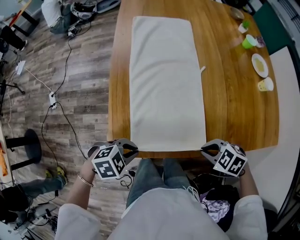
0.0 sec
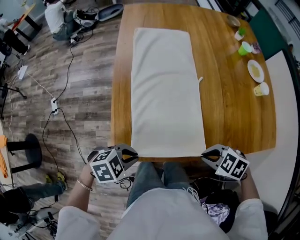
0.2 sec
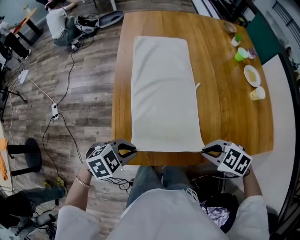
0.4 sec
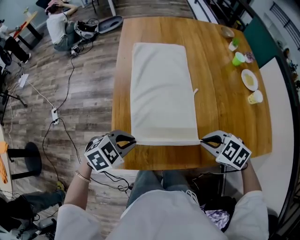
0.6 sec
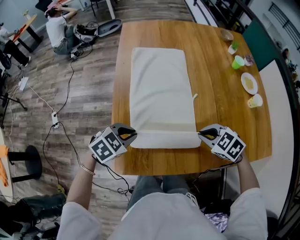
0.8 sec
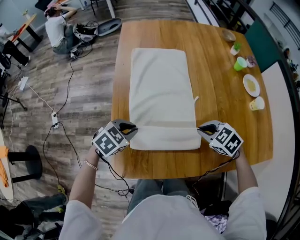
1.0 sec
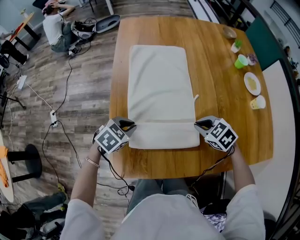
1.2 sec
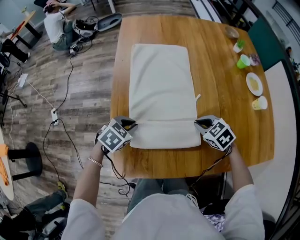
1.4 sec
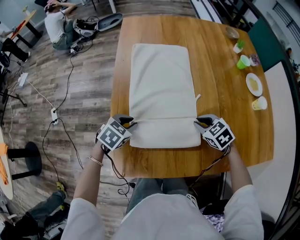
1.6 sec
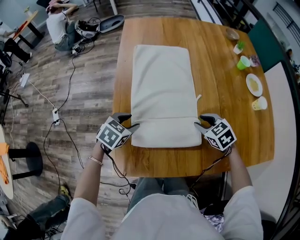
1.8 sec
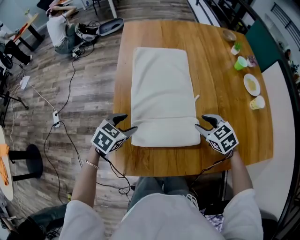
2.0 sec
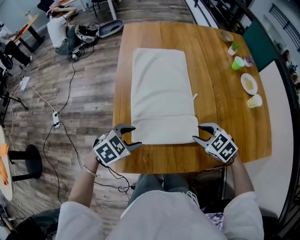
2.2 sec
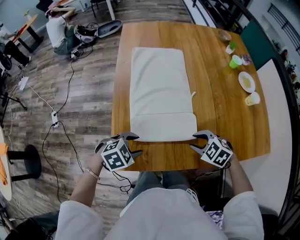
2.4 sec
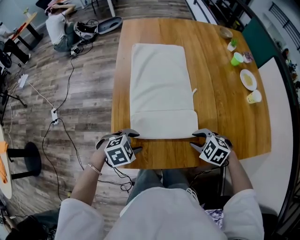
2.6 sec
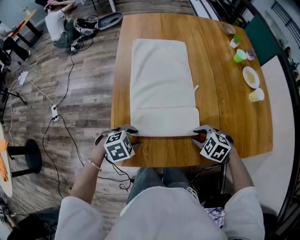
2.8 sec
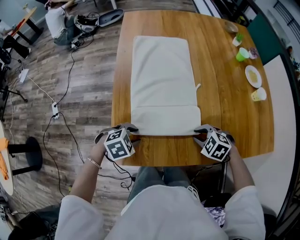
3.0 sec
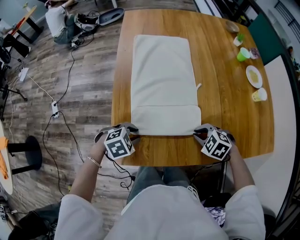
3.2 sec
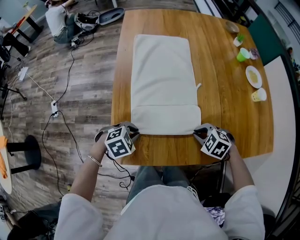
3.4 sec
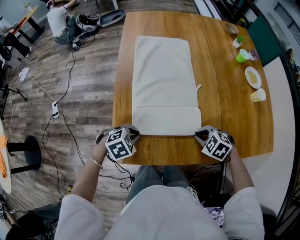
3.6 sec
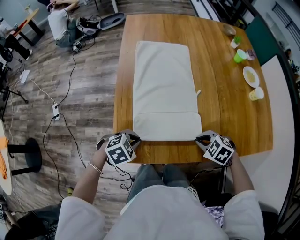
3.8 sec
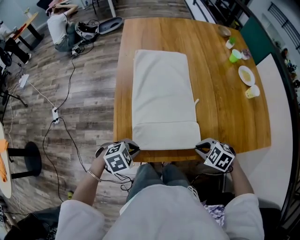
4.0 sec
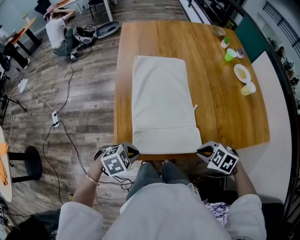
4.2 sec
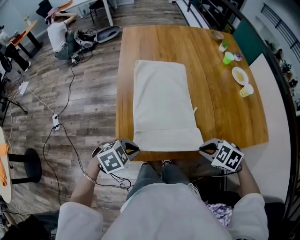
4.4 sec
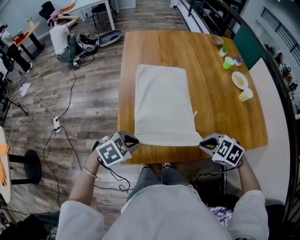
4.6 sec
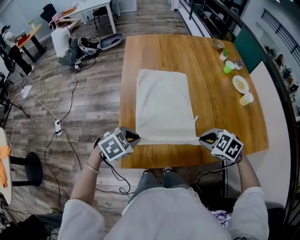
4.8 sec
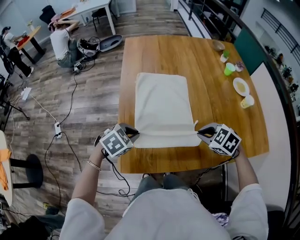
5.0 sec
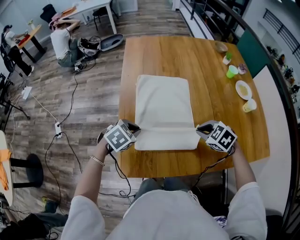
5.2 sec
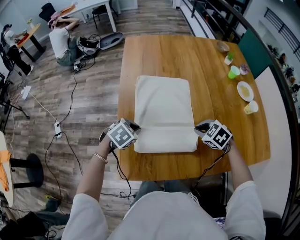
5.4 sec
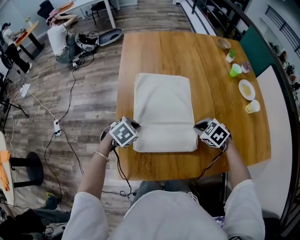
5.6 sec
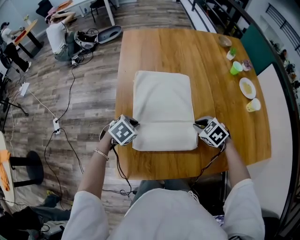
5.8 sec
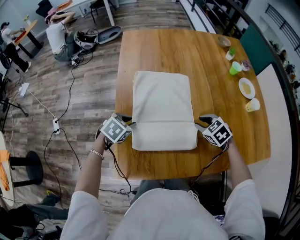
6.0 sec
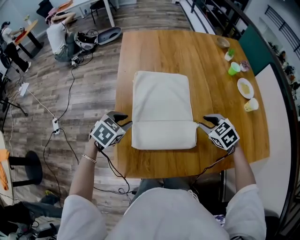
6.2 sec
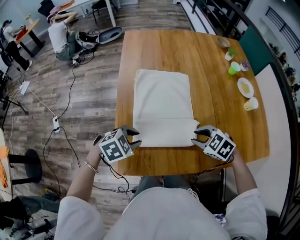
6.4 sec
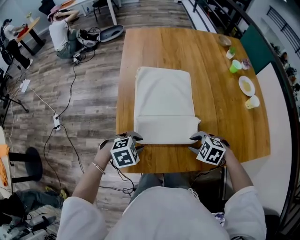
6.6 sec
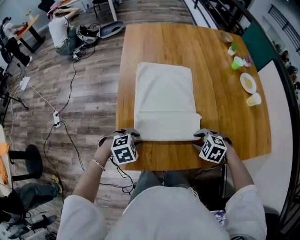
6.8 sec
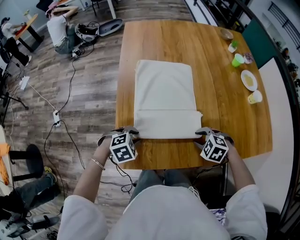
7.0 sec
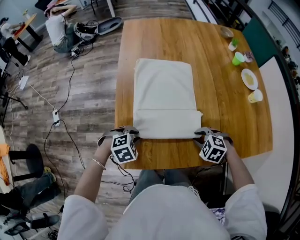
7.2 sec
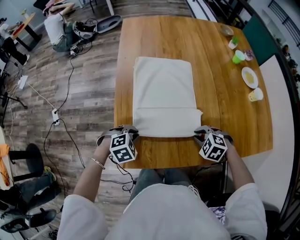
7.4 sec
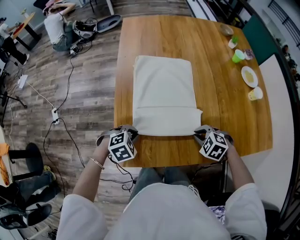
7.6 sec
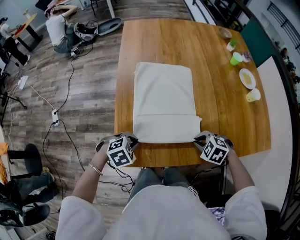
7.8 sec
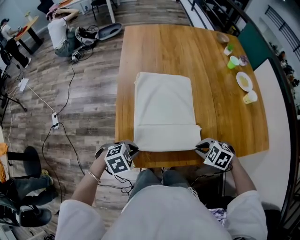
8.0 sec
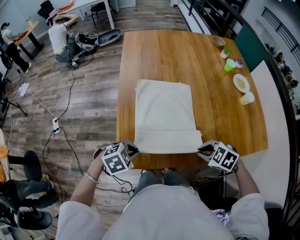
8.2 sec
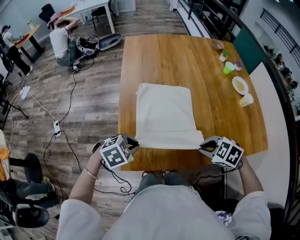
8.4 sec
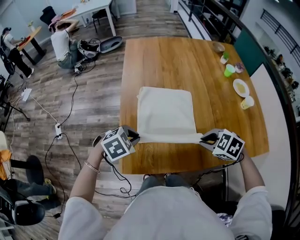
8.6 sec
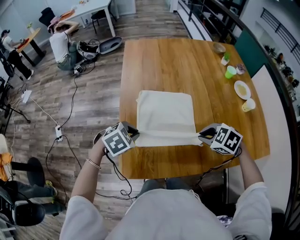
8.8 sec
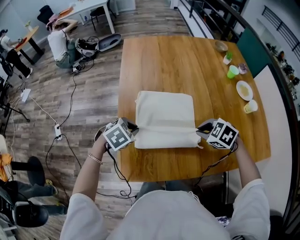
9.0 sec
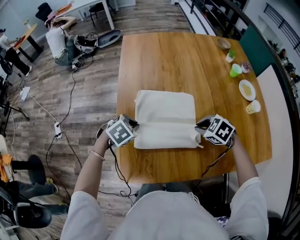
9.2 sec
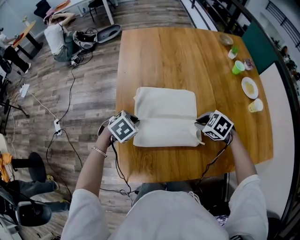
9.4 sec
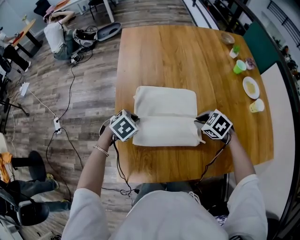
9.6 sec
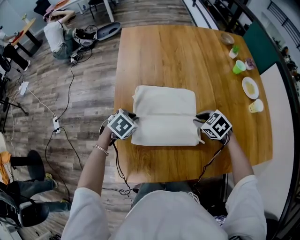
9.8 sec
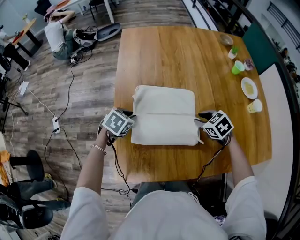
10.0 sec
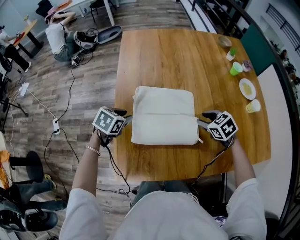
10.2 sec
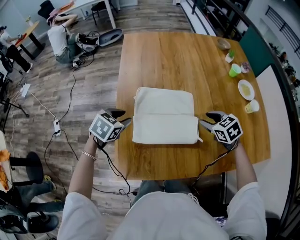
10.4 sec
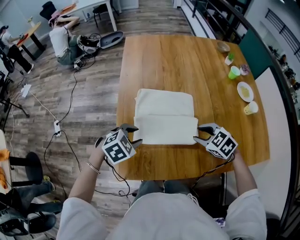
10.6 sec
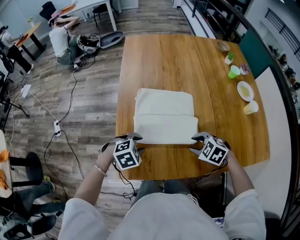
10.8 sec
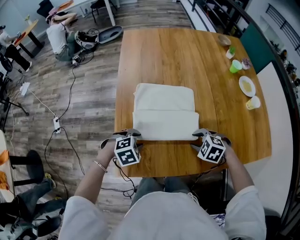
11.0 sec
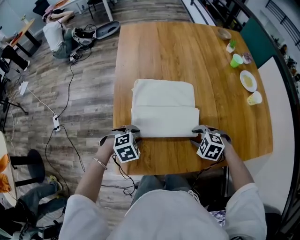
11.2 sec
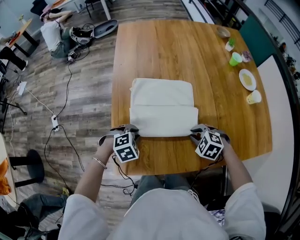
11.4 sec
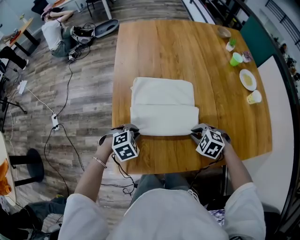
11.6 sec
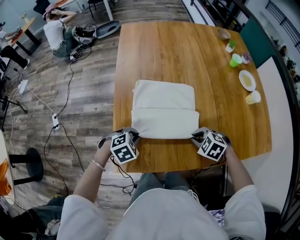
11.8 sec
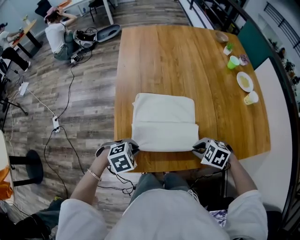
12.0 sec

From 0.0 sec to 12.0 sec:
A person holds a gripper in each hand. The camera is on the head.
From 0.0 sec to 1.6 sec: The left gripper changes place by about 20 cm, and changes its angle by roughly 30 degrees; the right gripper travels upward and back again, some 10 cm each way, and swivels some 30 degrees.
From 1.6 sec to 3.0 sec: The left gripper shifts by about 10 cm, and changes its angle by about 30 degrees. The right gripper changes place by some 10 cm, and rotates roughly 30 degrees.
From 3.0 sec to 4.4 sec: The left gripper shifts by roughly 10 cm. Meanwhile the right gripper shifts by about 15 cm.
From 4.4 sec to 6.0 sec: The right gripper changes place by approximately 25 cm, and swivels approximately 20 degrees, while the left gripper ends up about 25 cm from where it was, and swivels some 20 degrees.
From 6.0 sec to 7.6 sec: The right gripper ends up about 15 cm from where it was, and rotates roughly 20 degrees; the left gripper shifts by approximately 15 cm, and changes its angle by approximately 30 degrees.
From 7.6 sec to 9.0 sec: The right gripper goes about 10 cm upward, while the left gripper ends up approximately 10 cm from where it was.
From 9.0 sec to 10.4 sec: The left gripper changes place by roughly 5 cm, and swivels approximately 20 degrees, while the right gripper is displaced forward by roughly 5 cm, and turns by some 30 degrees.
From 10.4 sec to 12.0 sec: The left gripper shifts by some 20 cm, and changes its angle by some 30 degrees. Meanwhile the right gripper shifts by approximately 20 cm, and swivels about 30 degrees.

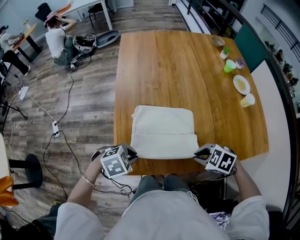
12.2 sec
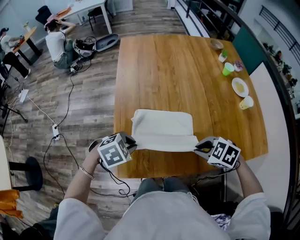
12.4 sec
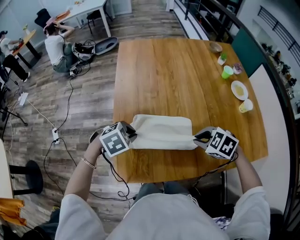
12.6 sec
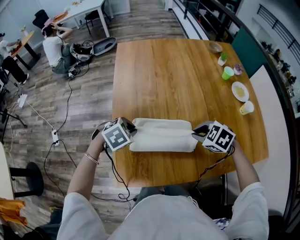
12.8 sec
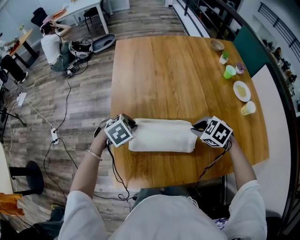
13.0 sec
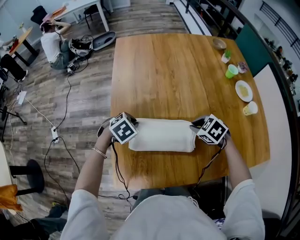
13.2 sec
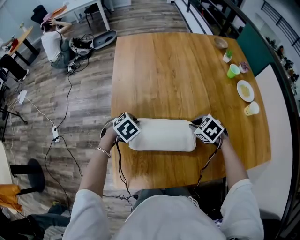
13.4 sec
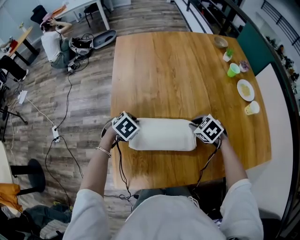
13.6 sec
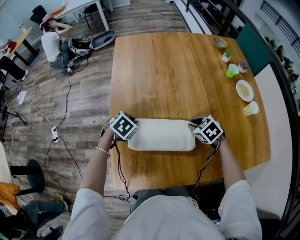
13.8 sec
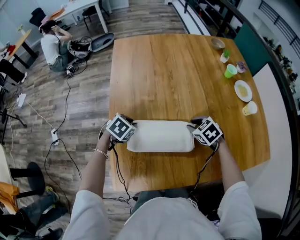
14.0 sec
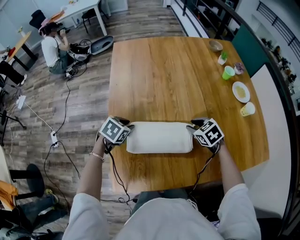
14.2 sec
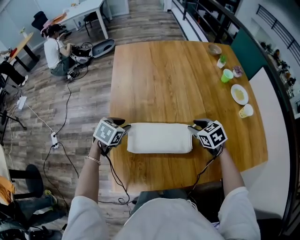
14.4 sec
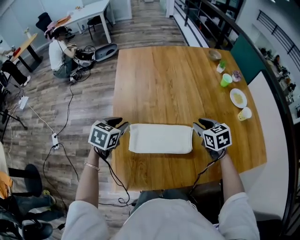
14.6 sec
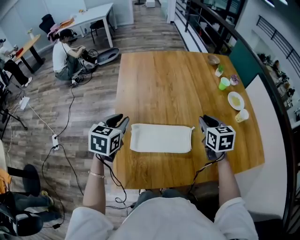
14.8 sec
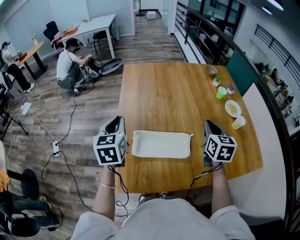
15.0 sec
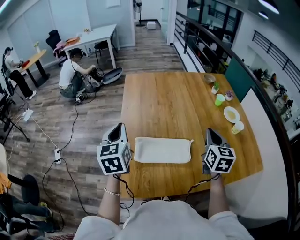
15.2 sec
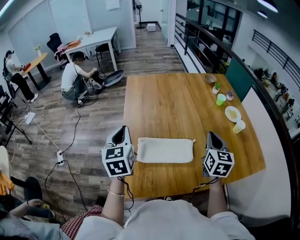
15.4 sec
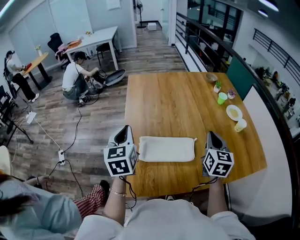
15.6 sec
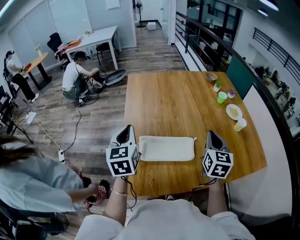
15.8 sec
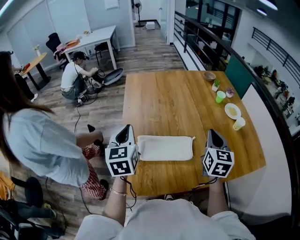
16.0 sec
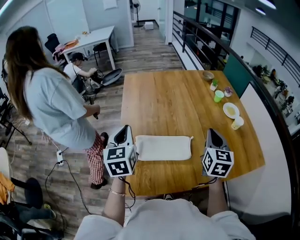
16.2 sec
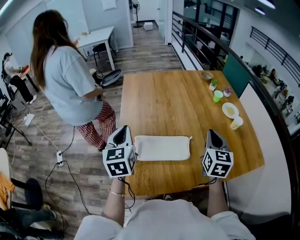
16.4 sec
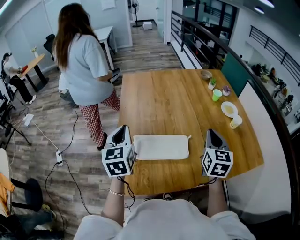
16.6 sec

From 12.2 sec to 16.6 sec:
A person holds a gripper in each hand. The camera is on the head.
From 12.2 sec to 13.6 sec: The left gripper ends up approximately 25 cm from where it was, and rotates about 20 degrees; the right gripper moves roughly 25 cm, and turns by approximately 20 degrees.
From 13.6 sec to 15.2 sec: The grippers both shift upward by approximately 25 cm. The right gripper tips its fingers upward by approximately 50 degrees. The left gripper points its fingers about 50 degrees further upward.
From 15.2 sec to 16.6 sec: There are only small adjustments of the grippers.

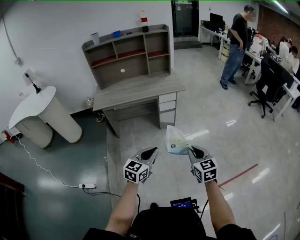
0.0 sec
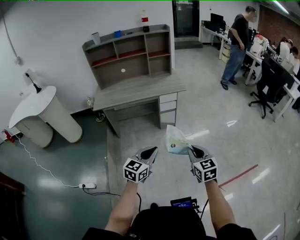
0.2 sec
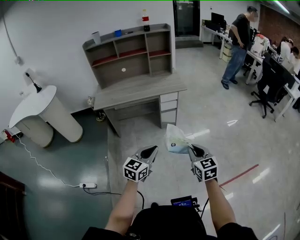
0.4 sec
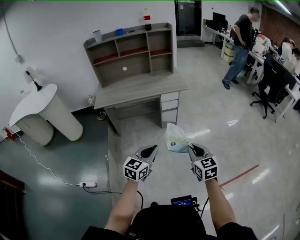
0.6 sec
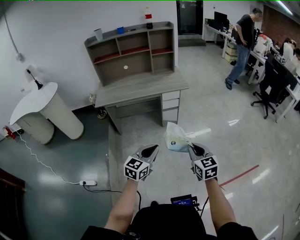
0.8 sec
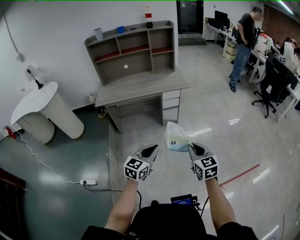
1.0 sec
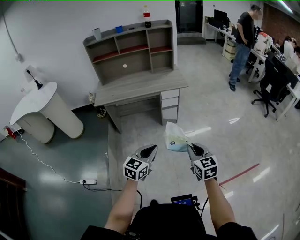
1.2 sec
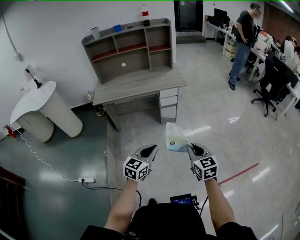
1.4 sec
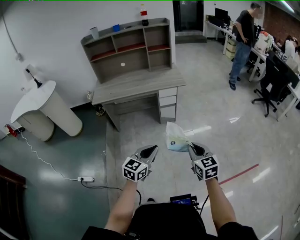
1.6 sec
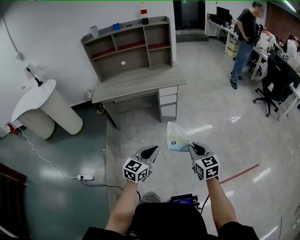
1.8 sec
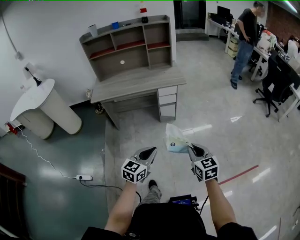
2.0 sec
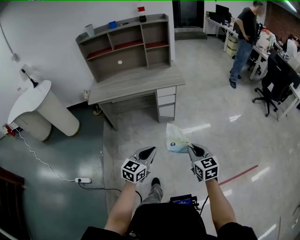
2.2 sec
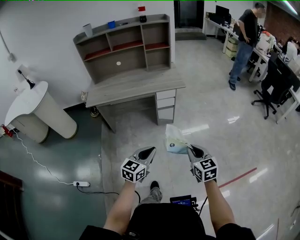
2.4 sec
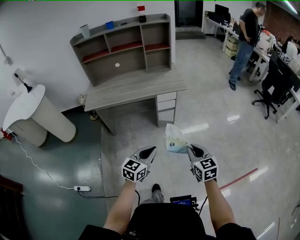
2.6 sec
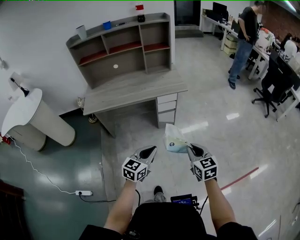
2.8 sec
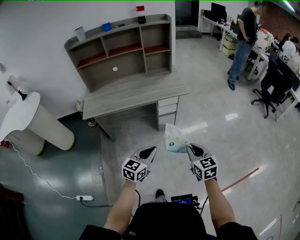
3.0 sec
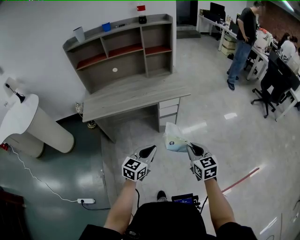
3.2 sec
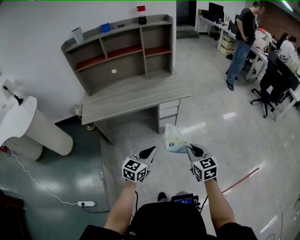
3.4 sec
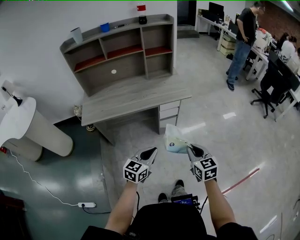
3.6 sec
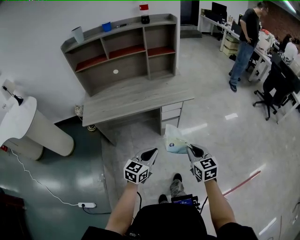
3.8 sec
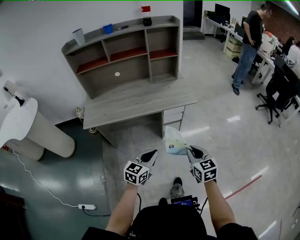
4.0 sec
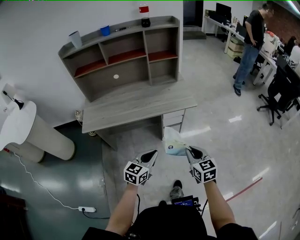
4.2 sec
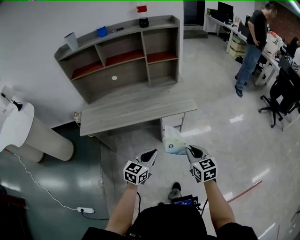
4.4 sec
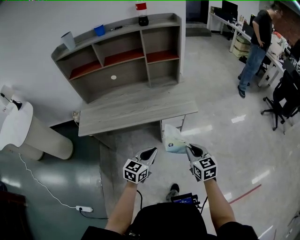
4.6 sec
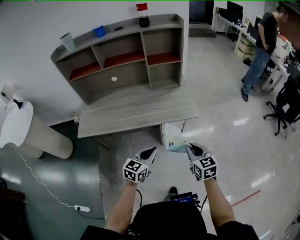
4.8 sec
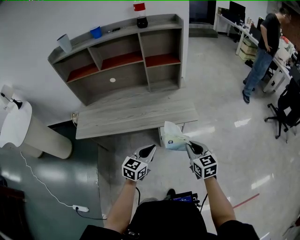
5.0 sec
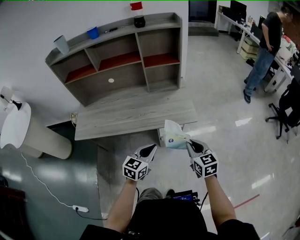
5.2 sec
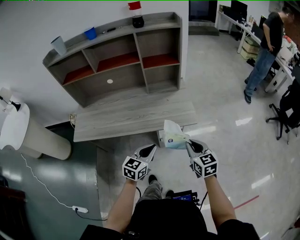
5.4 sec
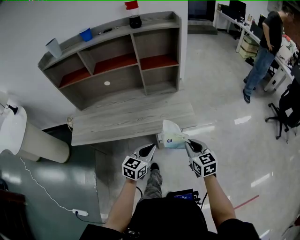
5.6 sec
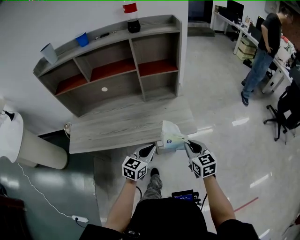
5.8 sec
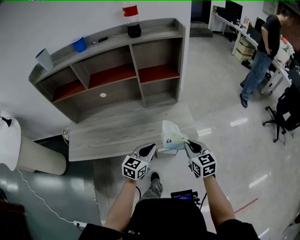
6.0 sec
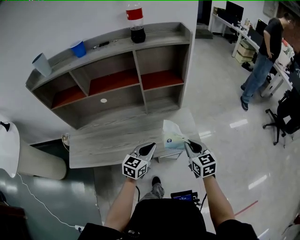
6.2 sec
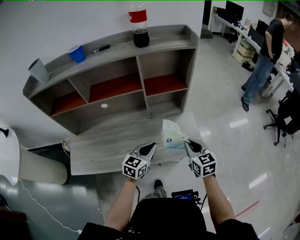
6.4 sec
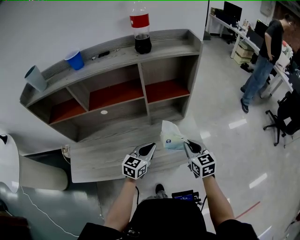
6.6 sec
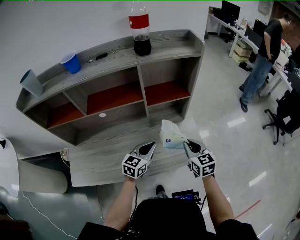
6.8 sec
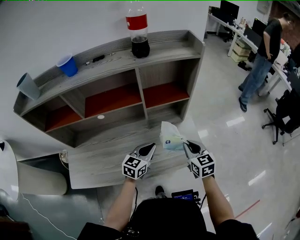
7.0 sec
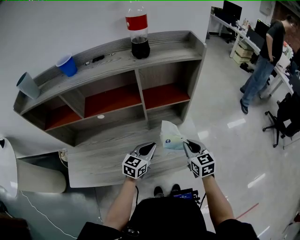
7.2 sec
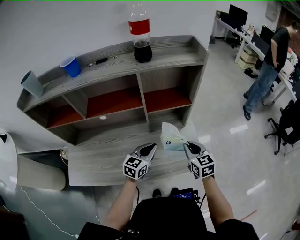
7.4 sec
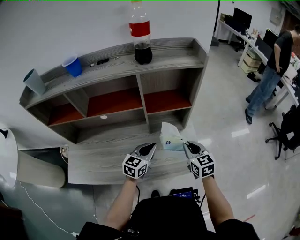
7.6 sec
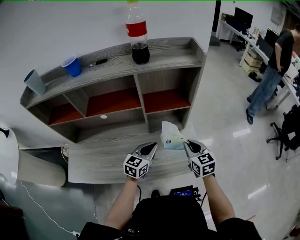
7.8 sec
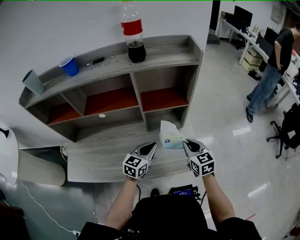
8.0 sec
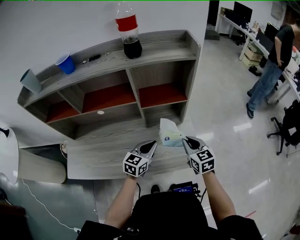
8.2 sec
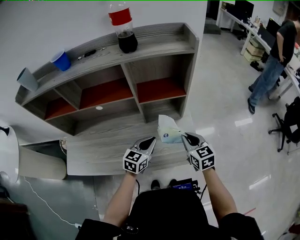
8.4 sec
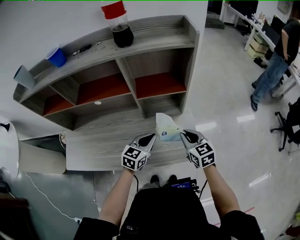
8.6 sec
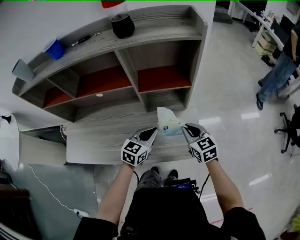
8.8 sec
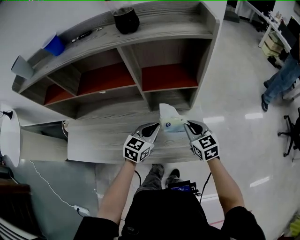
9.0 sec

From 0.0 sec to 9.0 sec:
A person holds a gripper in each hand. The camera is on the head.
From 0.0 sec to 1.6 sec: The grippers make only small movements.
From 1.6 sec to 3.0 sec: Both grippers move forward, some 20 cm.
From 3.0 sec to 4.4 sec: The two grippers go about 20 cm forward.
From 4.4 sec to 6.0 sec: The grippers both shift forward by approximately 30 cm.
From 6.0 sec to 7.6 sec: The grippers both shift forward by about 20 cm.
From 7.6 sec to 9.0 sec: The left gripper moves about 5 cm, while the right gripper is displaced downward and forward by some 10 cm.
